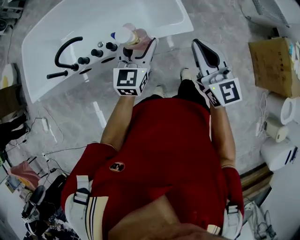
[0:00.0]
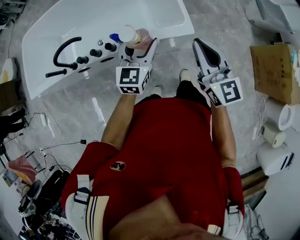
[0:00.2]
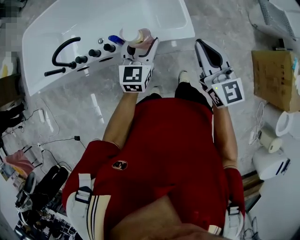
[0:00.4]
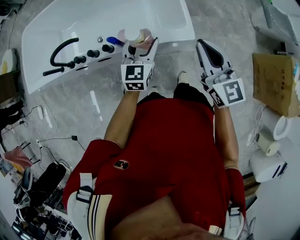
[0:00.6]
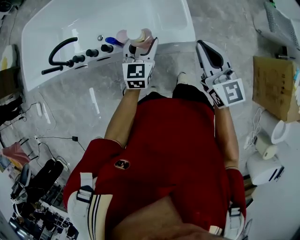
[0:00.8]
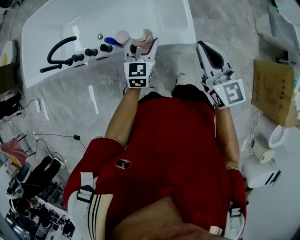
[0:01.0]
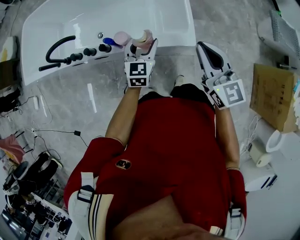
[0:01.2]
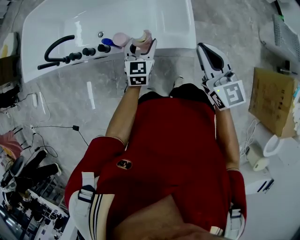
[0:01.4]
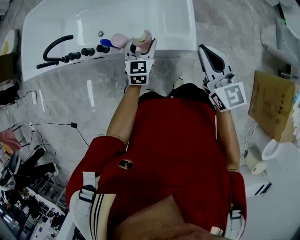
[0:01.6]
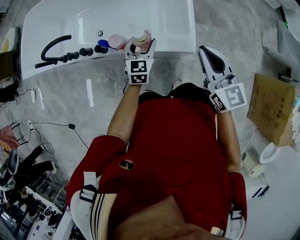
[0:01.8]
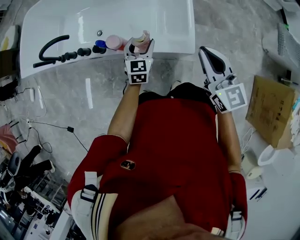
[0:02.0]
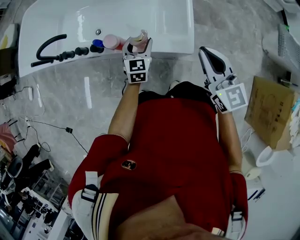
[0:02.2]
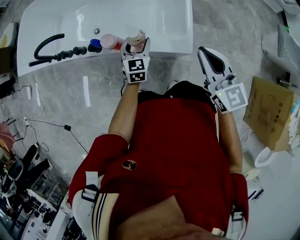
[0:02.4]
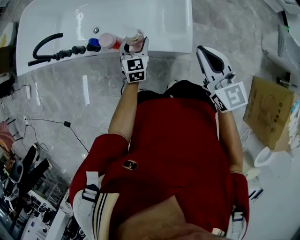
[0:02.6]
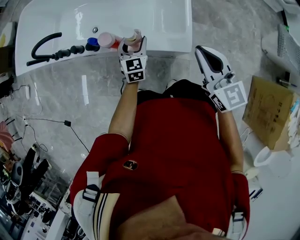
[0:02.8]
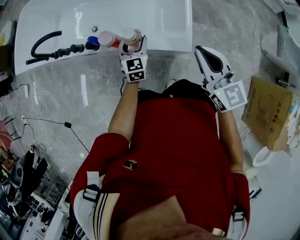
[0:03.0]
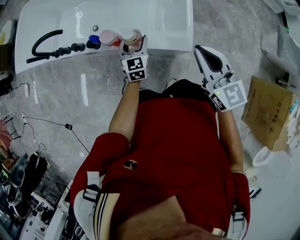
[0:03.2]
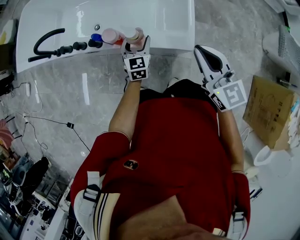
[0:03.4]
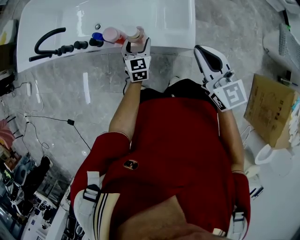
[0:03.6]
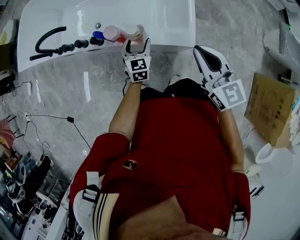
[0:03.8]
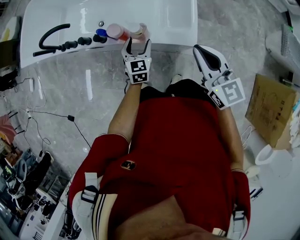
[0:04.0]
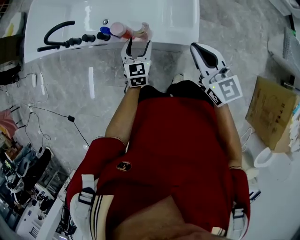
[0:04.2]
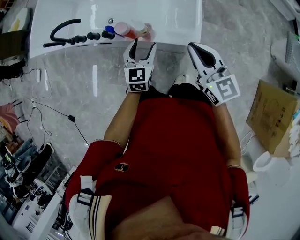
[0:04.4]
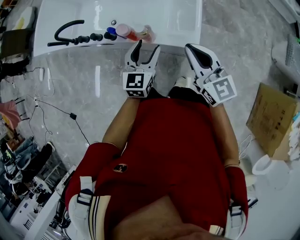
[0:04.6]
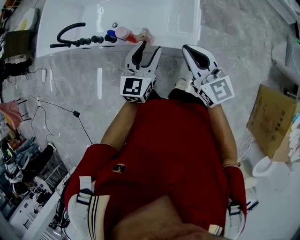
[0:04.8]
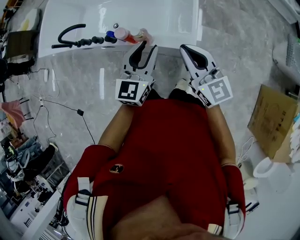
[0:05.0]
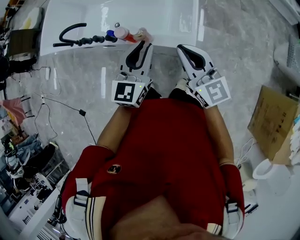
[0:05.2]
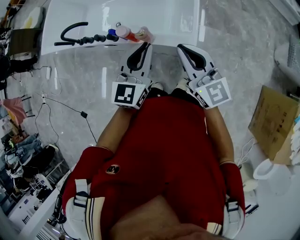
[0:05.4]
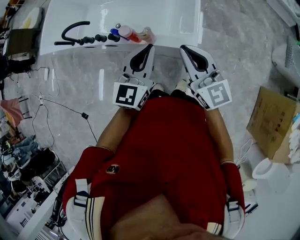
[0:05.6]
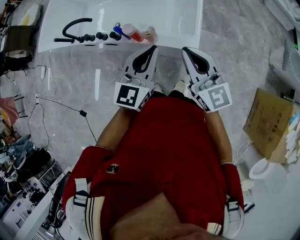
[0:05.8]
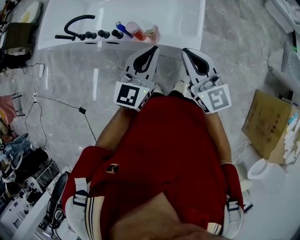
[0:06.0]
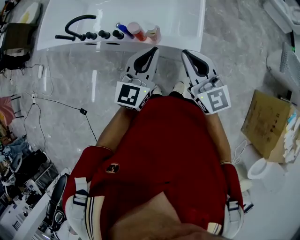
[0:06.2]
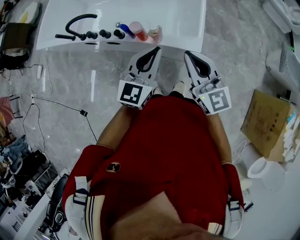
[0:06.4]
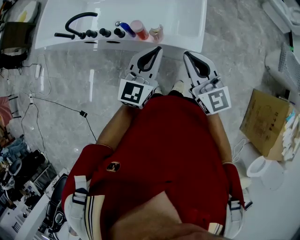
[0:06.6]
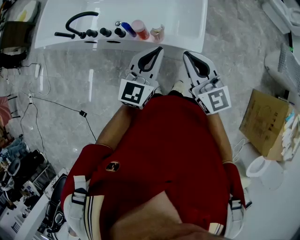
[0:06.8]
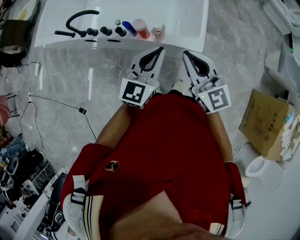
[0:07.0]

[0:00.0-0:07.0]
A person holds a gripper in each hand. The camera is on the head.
0:00.0 to 0:01.4: The left gripper moves downward and forward, approximately 20 cm, and changes its angle by roughly 20 degrees. Meanwhile the right gripper travels forward, to the right and downward by roughly 15 cm.
0:01.4 to 0:02.8: The left gripper shifts about 10 cm downward. The right gripper shifts roughly 5 cm downward.
0:02.8 to 0:04.2: The left gripper moves backward, about 5 cm.
0:04.2 to 0:05.6: The left gripper shifts some 25 cm upward, swivels roughly 20 degrees, and closes, while the right gripper moves upward, some 10 cm.
0:05.6 to 0:07.0: The two grippers go approximately 5 cm to the left.

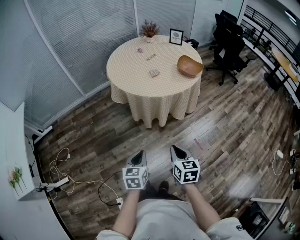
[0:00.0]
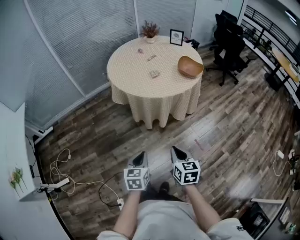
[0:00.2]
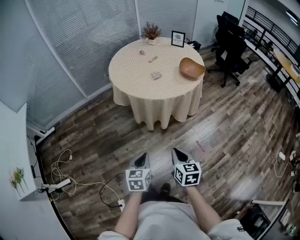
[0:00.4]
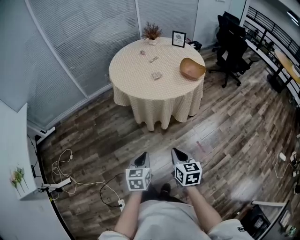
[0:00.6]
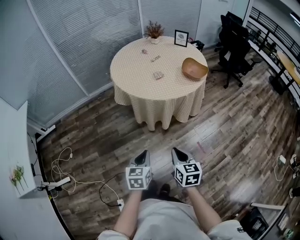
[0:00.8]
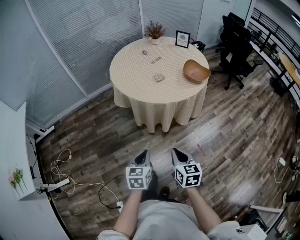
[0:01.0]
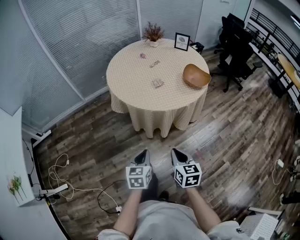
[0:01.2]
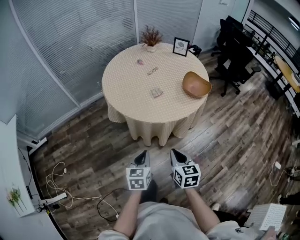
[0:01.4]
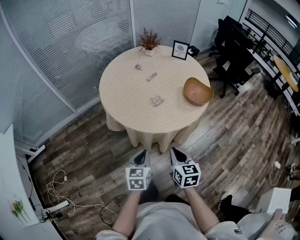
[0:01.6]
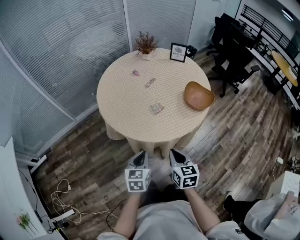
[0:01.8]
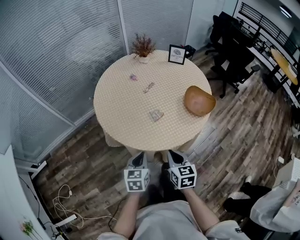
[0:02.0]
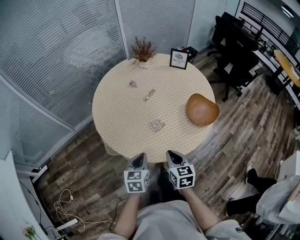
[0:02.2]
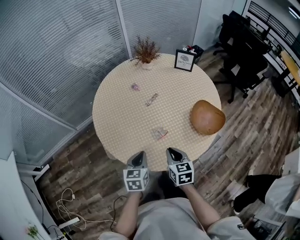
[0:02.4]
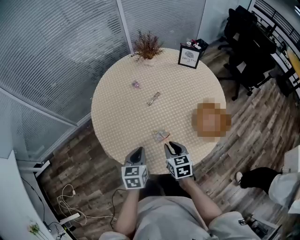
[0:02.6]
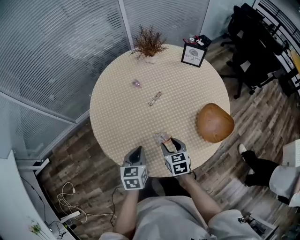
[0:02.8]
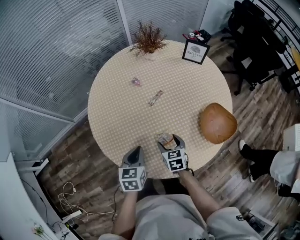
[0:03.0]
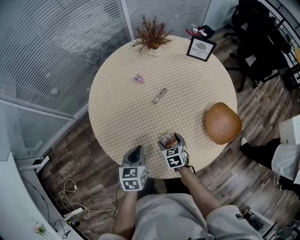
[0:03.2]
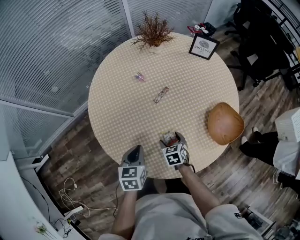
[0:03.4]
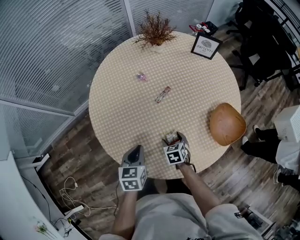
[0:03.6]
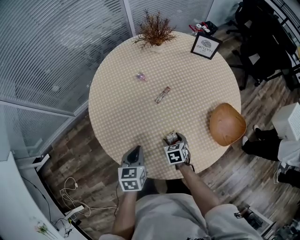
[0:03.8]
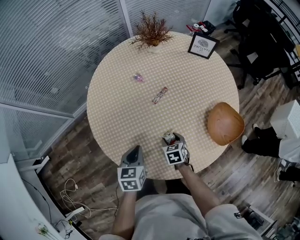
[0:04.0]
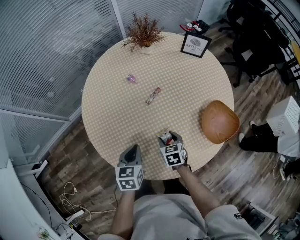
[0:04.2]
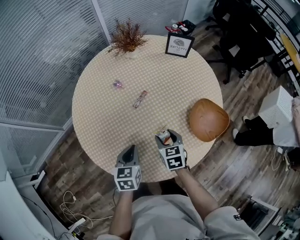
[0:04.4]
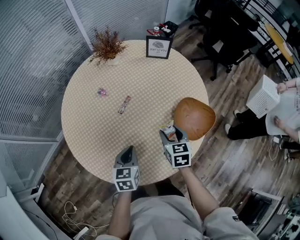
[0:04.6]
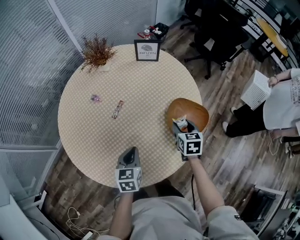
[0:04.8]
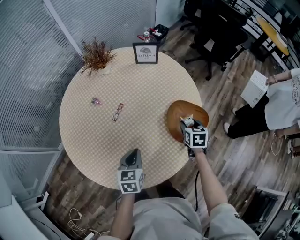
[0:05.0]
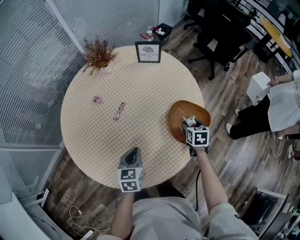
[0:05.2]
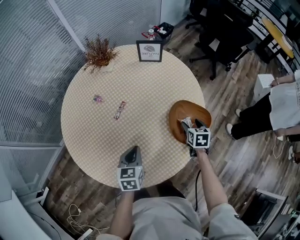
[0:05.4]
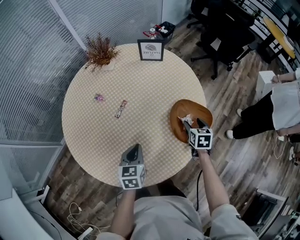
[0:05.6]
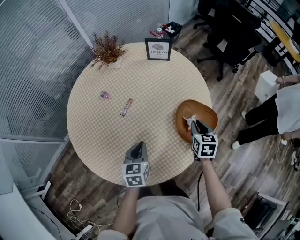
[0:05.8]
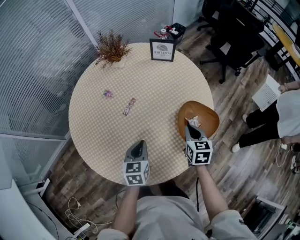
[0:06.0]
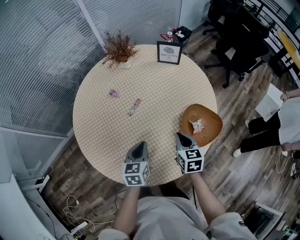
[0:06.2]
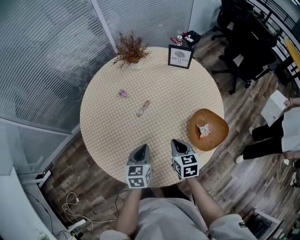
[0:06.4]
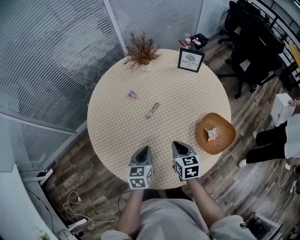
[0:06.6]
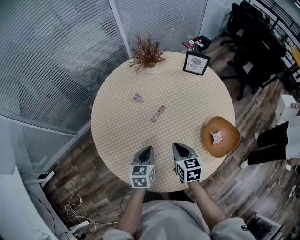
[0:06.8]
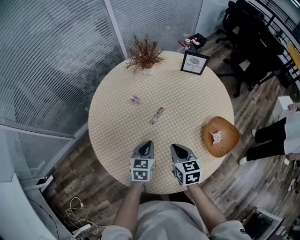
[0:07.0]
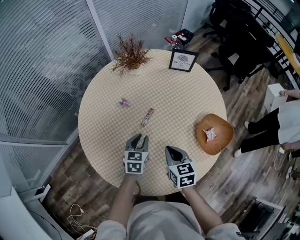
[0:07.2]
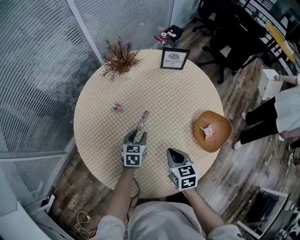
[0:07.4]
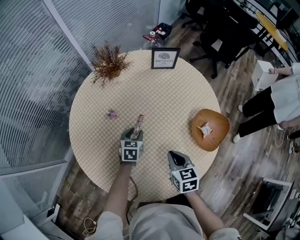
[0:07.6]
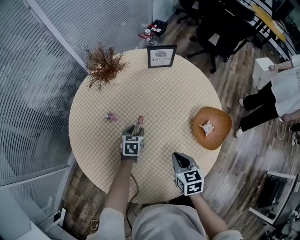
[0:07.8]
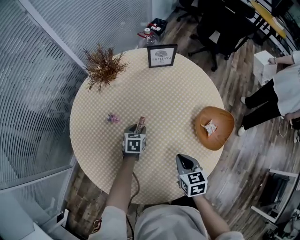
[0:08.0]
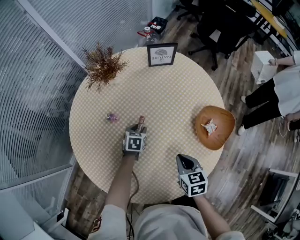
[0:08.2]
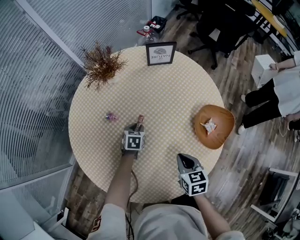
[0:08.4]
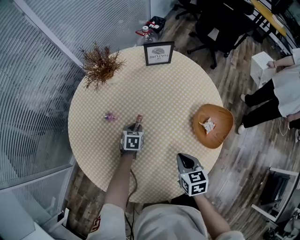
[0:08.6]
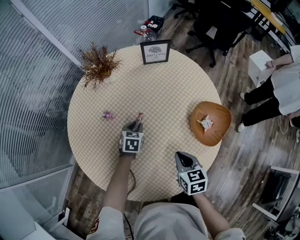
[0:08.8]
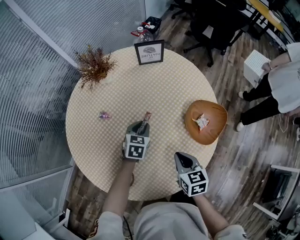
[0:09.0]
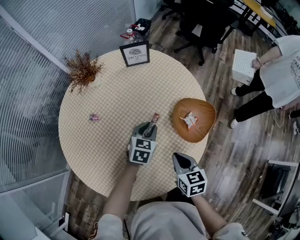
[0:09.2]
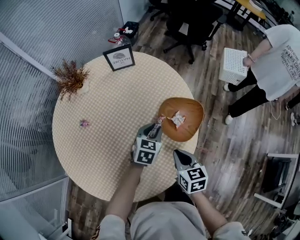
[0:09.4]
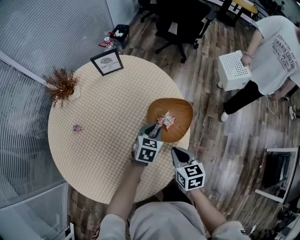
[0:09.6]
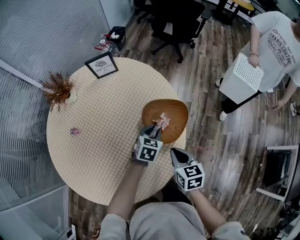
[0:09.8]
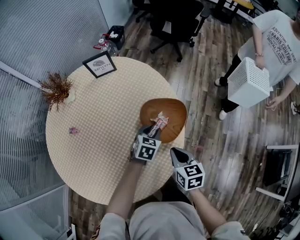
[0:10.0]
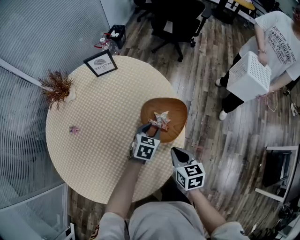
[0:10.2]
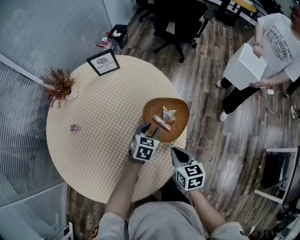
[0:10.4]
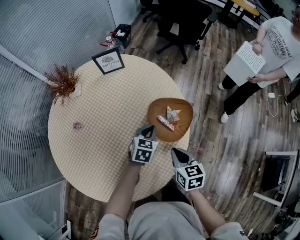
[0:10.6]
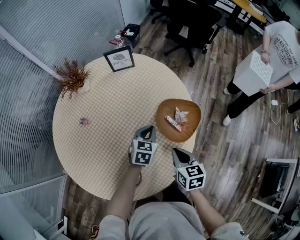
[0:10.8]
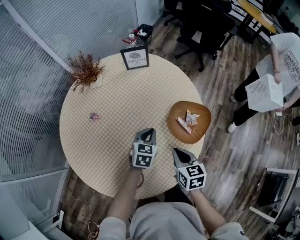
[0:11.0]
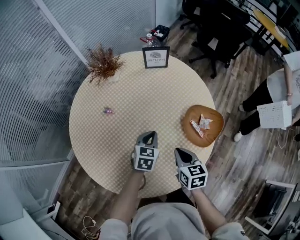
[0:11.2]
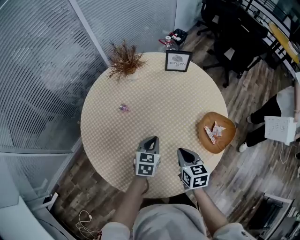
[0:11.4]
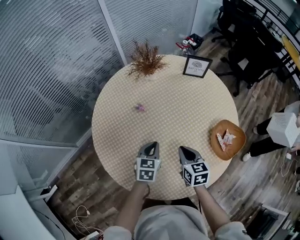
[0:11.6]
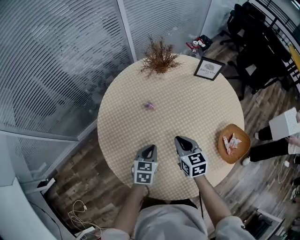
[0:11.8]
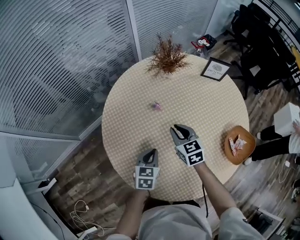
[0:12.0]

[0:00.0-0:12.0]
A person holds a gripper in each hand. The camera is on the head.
0:00.0 to 0:01.6: The two grippers go some 30 cm forward.
0:01.6 to 0:03.0: The left gripper shifts some 35 cm forward; the right gripper travels forward and downward by approximately 40 cm, and opens.
0:03.0 to 0:04.4: The right gripper reaches about 10 cm downward, then returns. Meanwhile the left gripper moves approximately 5 cm.
0:04.4 to 0:06.0: The left gripper is displaced to the right by roughly 10 cm; the right gripper shifts roughly 20 cm to the right, and closes its fingers.
0:06.0 to 0:07.6: The left gripper travels forward, downward and to the left by about 25 cm, rotates some 20 degrees, and opens its fingers. The right gripper goes about 20 cm to the left.
0:07.6 to 0:09.0: The grippers both shift to the right by roughly 10 cm.
0:09.0 to 0:10.4: The two grippers go approximately 20 cm to the right.
0:10.4 to 0:12.0: The two grippers travel together, some 40 cm. The right gripper turns by roughly 50 degrees. Meanwhile the left gripper rotates roughly 40 degrees, and closes its fingers.

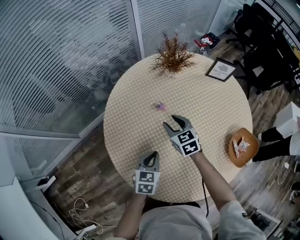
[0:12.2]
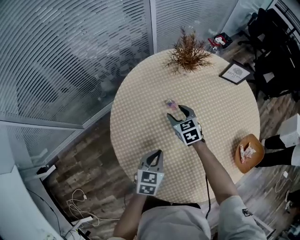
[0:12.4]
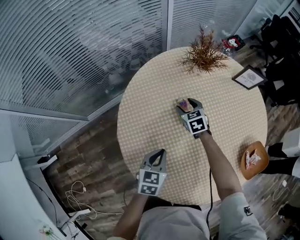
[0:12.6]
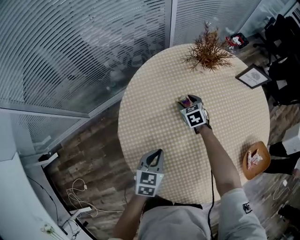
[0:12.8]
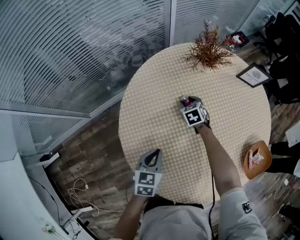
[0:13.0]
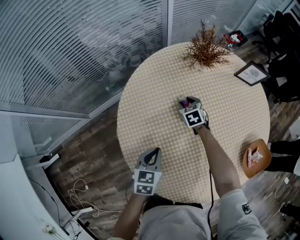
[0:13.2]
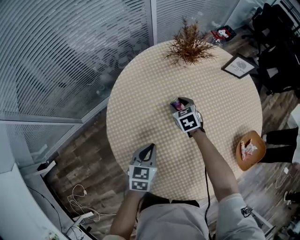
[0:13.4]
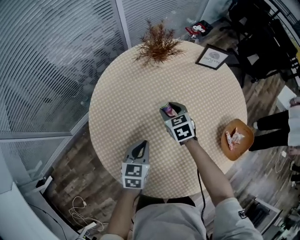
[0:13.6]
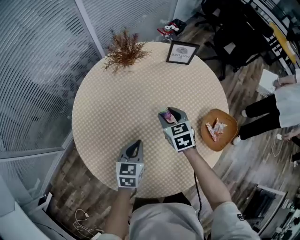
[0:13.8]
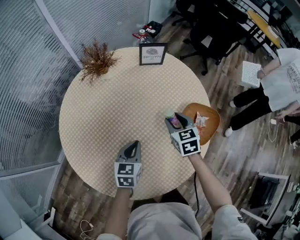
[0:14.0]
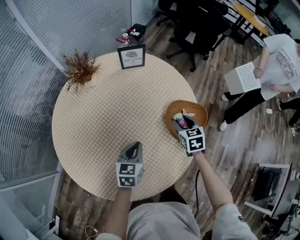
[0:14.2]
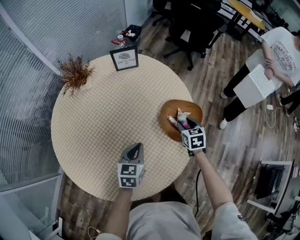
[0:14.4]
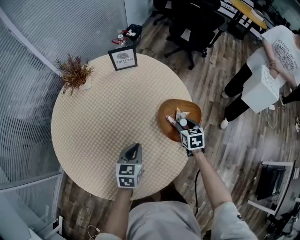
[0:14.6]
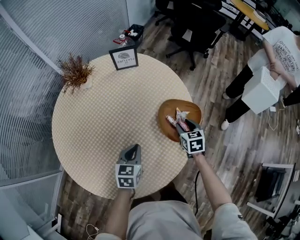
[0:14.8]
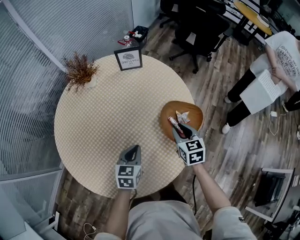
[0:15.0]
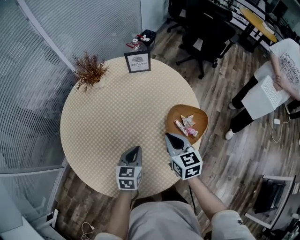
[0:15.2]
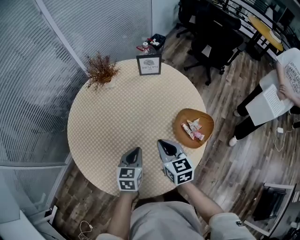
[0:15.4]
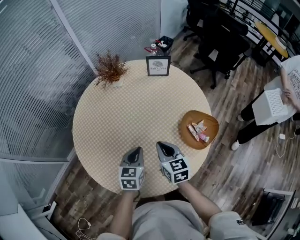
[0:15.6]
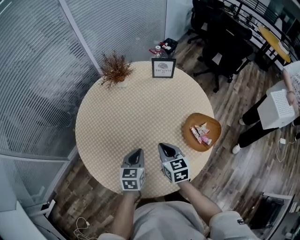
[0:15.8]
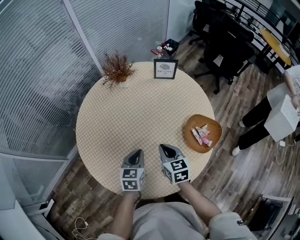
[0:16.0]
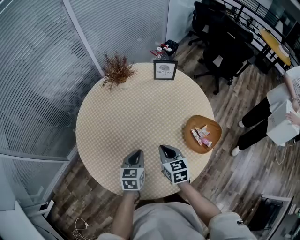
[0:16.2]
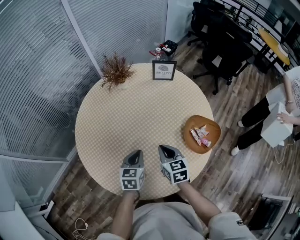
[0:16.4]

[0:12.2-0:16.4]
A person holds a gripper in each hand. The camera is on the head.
0:12.2 to 0:13.6: The left gripper reaches approximately 5 cm to the left, then returns; the right gripper reaches about 15 cm downward, then returns.
0:13.6 to 0:15.0: The right gripper moves up and down over approximately 10 cm, changing direction 2 times, and swivels approximately 30 degrees. The left gripper shifts by some 25 cm.
0:15.0 to 0:16.4: The right gripper moves to the left, some 20 cm. Meanwhile the left gripper goes about 10 cm to the left.
